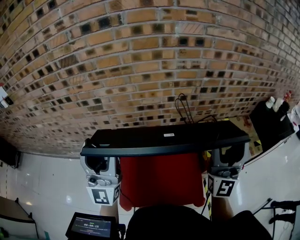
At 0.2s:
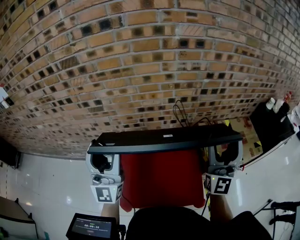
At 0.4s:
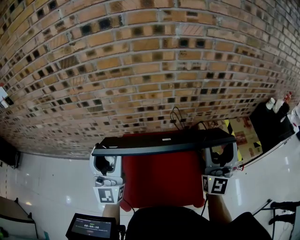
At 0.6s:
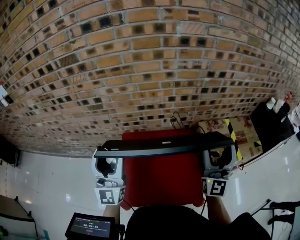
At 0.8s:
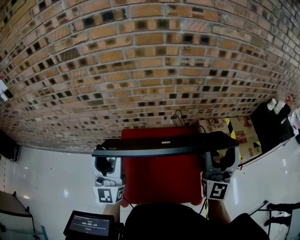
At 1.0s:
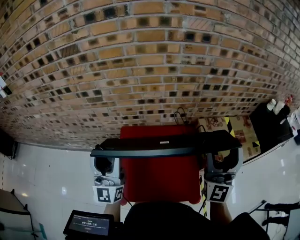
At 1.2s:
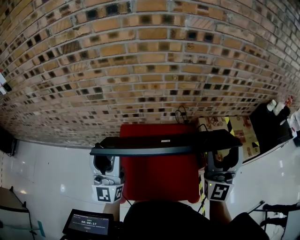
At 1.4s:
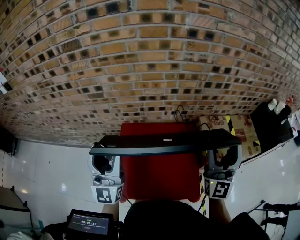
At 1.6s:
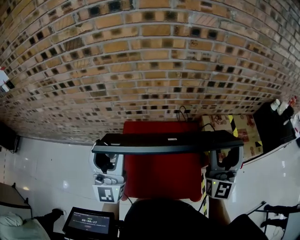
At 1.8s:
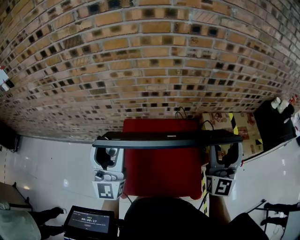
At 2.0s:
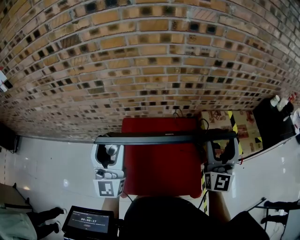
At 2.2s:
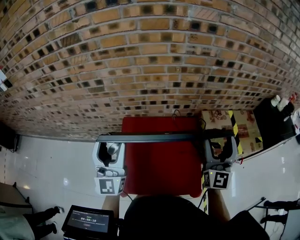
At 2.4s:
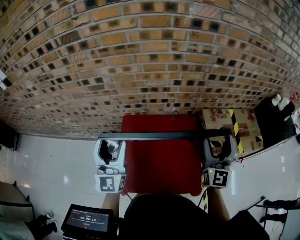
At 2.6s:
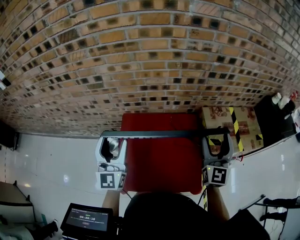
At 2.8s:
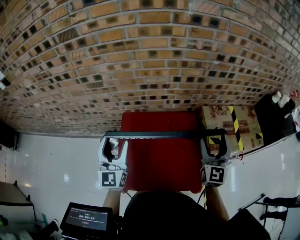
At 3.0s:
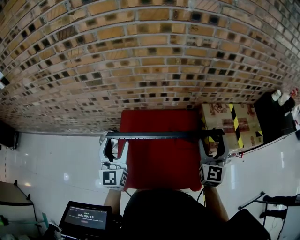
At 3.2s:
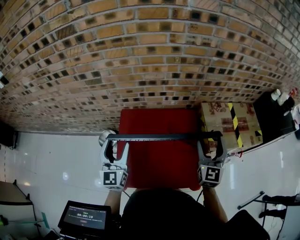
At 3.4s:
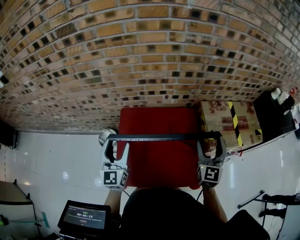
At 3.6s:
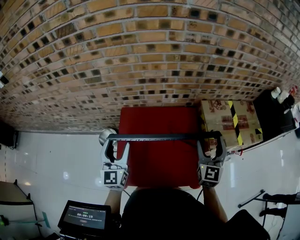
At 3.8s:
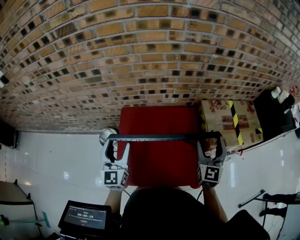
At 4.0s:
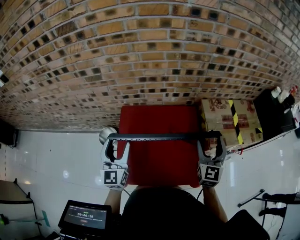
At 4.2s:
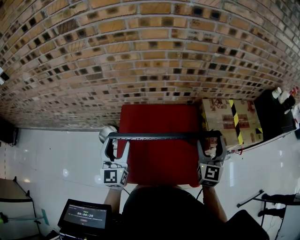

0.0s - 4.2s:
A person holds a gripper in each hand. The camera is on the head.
0.0s - 1.4s: Both grippers move downward, approximately 5 cm.
1.4s - 2.8s: Both grippers travel together downward, about 10 cm. The left gripper swivels approximately 20 degrees. Meanwhile the right gripper swivels about 20 degrees.
2.8s - 4.2s: Both grippers travel together downward, some 5 cm.

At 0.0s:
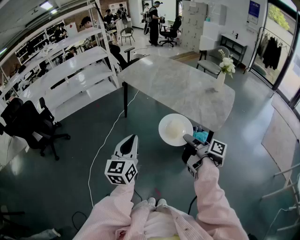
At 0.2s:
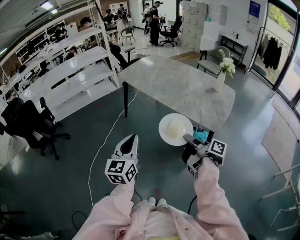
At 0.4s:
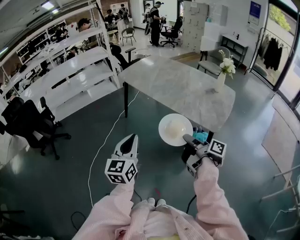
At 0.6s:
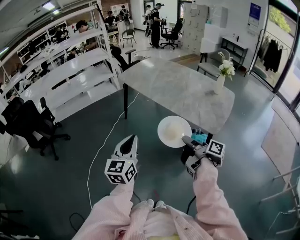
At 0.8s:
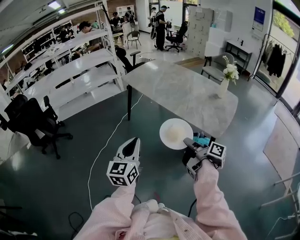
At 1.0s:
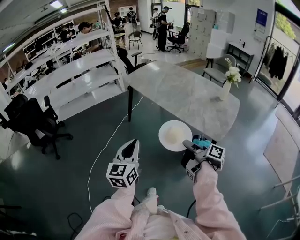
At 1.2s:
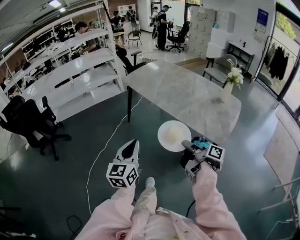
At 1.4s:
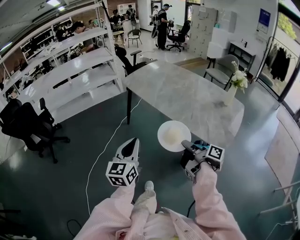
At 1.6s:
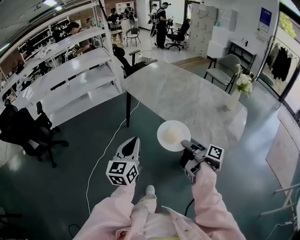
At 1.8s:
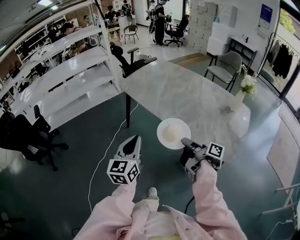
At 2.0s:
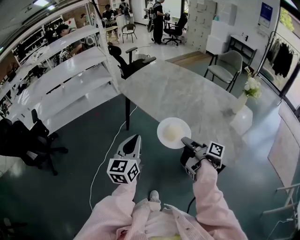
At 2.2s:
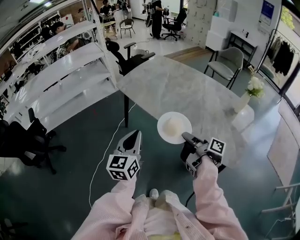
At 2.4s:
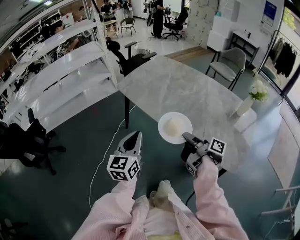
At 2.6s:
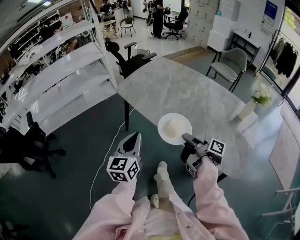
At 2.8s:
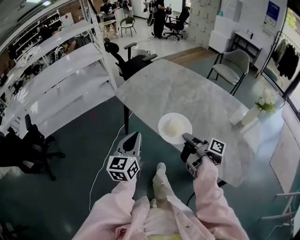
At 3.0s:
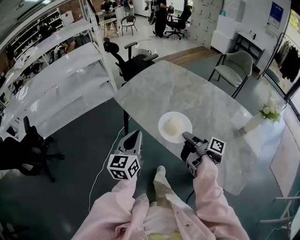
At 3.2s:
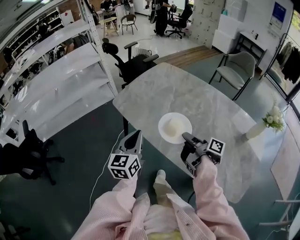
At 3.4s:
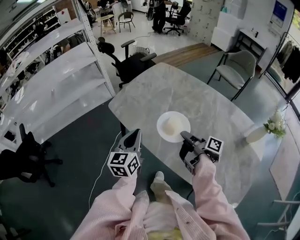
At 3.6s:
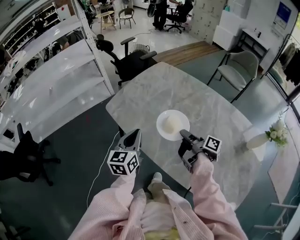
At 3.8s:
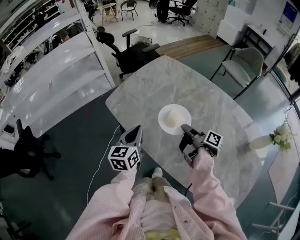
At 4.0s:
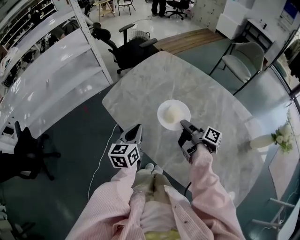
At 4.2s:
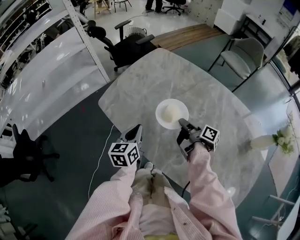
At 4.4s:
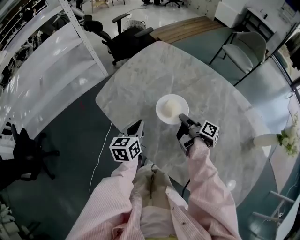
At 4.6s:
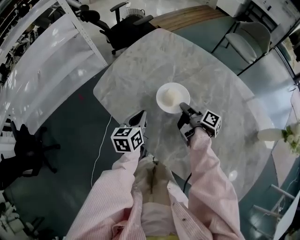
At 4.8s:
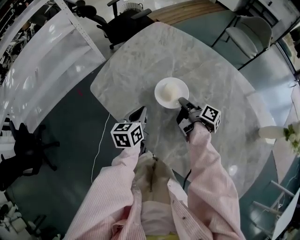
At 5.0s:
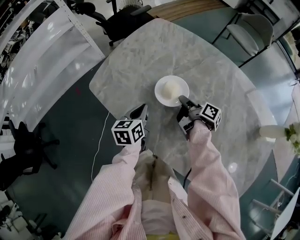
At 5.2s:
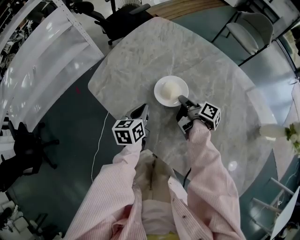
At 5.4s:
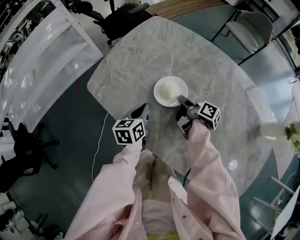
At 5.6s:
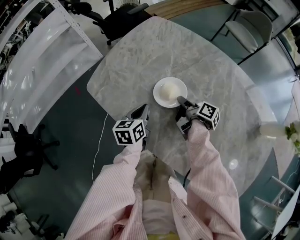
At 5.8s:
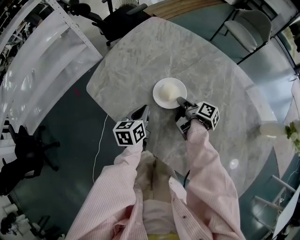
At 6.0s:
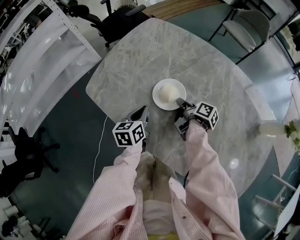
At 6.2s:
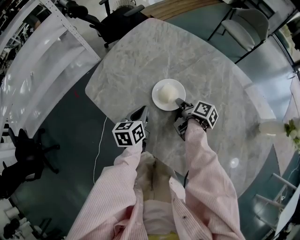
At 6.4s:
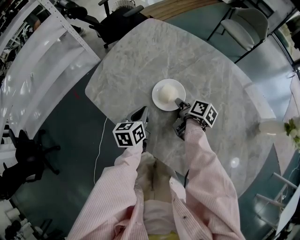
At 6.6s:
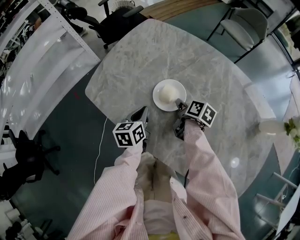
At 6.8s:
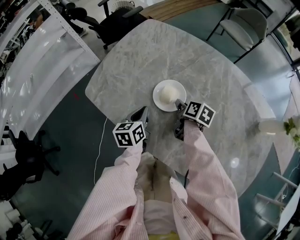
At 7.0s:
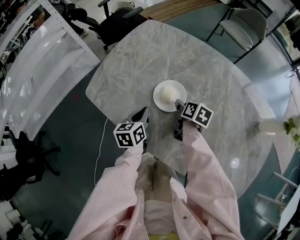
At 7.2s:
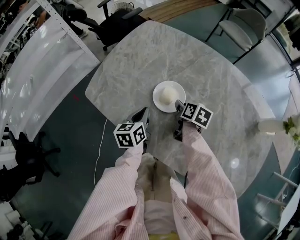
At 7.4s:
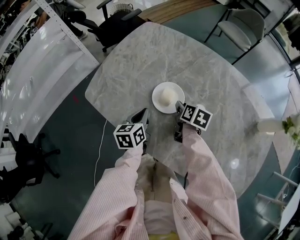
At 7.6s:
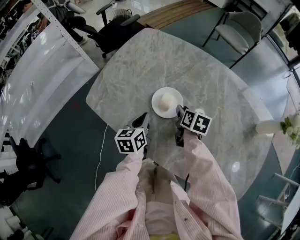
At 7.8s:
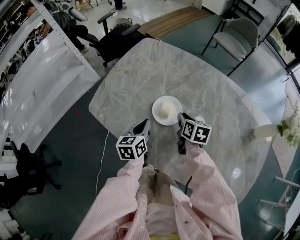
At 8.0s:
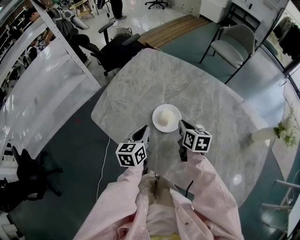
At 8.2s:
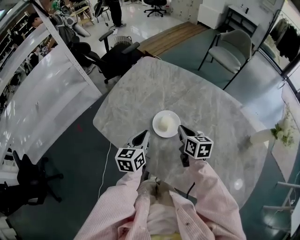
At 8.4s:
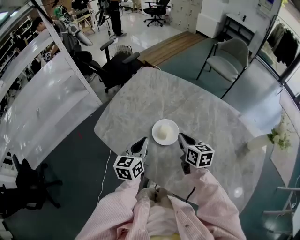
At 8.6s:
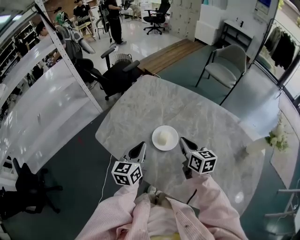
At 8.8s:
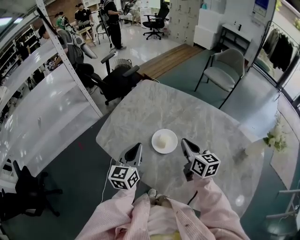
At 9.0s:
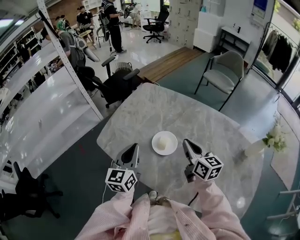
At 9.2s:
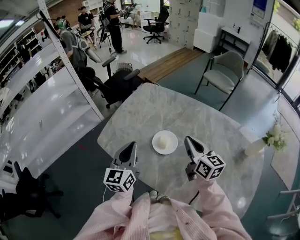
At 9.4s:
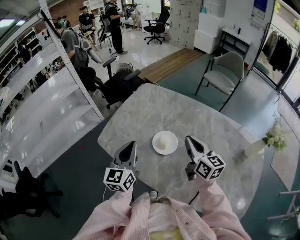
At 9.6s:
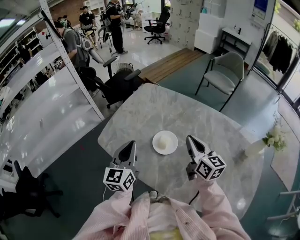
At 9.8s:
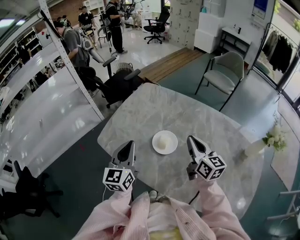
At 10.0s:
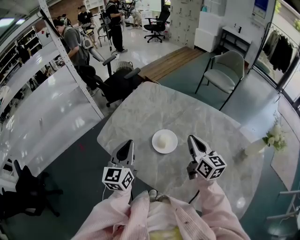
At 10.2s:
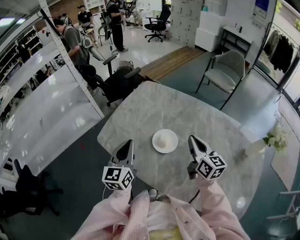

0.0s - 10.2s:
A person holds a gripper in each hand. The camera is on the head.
0.0s - 1.4s: The left gripper shifts by some 10 cm.
1.4s - 3.0s: The left gripper changes place by about 40 cm.
3.0s - 4.4s: The left gripper ends up about 30 cm from where it was, and rotates some 20 degrees.
4.4s - 5.8s: The left gripper shifts approximately 5 cm downward.
7.2s - 8.8s: The left gripper shifts roughly 15 cm upward, and turns by roughly 30 degrees.
8.8s - 10.2s: The left gripper shifts by some 5 cm.

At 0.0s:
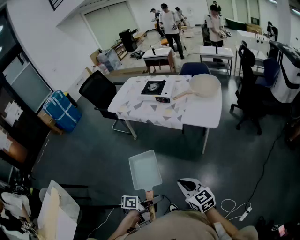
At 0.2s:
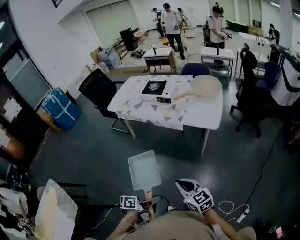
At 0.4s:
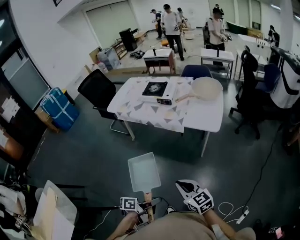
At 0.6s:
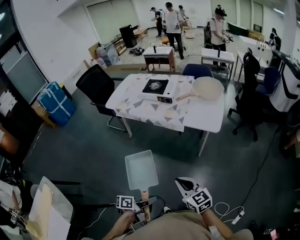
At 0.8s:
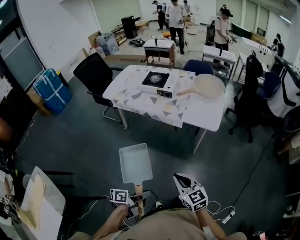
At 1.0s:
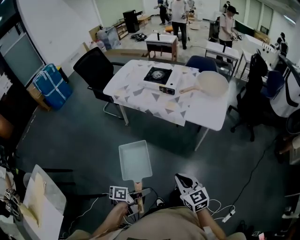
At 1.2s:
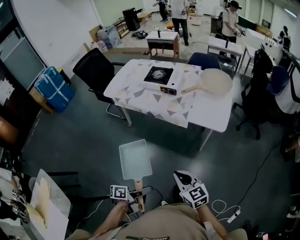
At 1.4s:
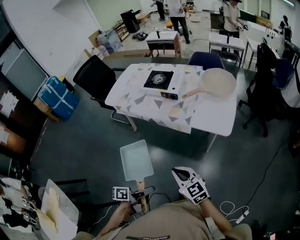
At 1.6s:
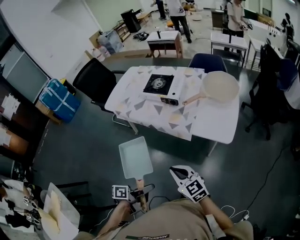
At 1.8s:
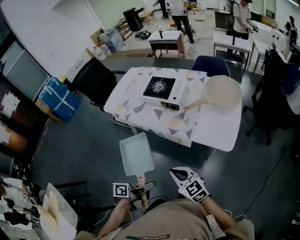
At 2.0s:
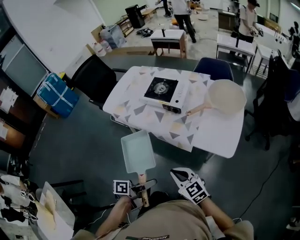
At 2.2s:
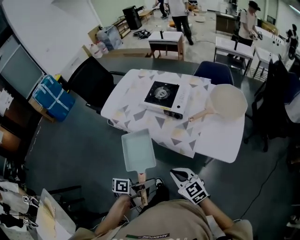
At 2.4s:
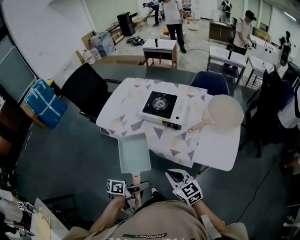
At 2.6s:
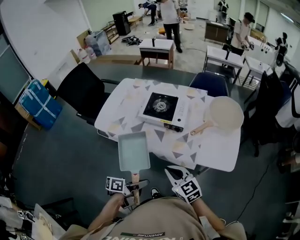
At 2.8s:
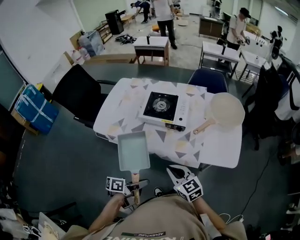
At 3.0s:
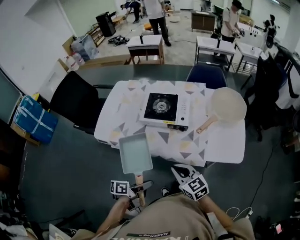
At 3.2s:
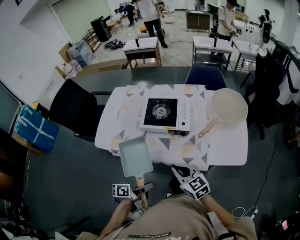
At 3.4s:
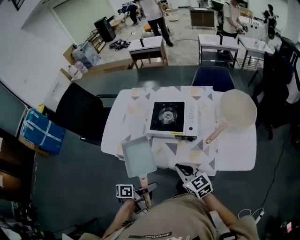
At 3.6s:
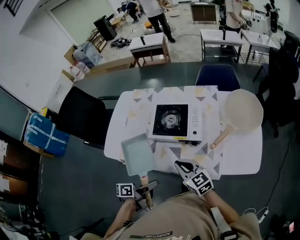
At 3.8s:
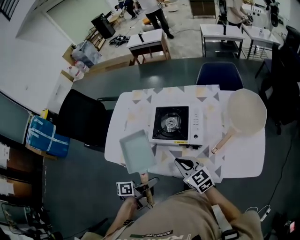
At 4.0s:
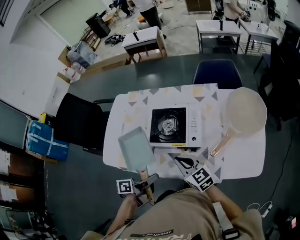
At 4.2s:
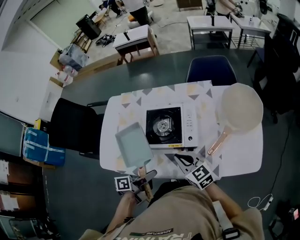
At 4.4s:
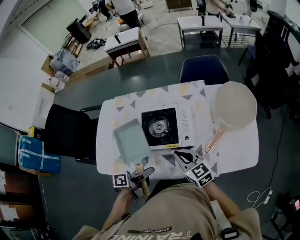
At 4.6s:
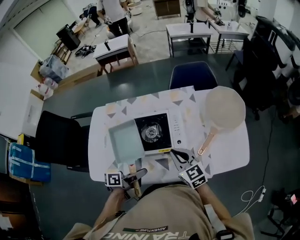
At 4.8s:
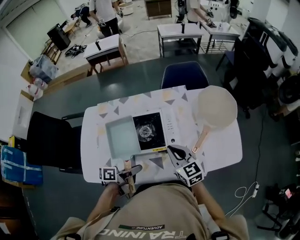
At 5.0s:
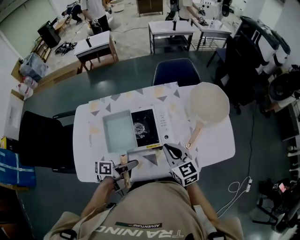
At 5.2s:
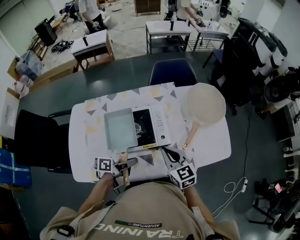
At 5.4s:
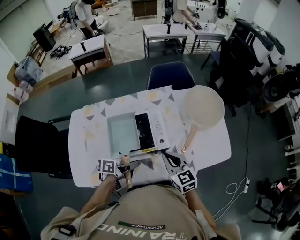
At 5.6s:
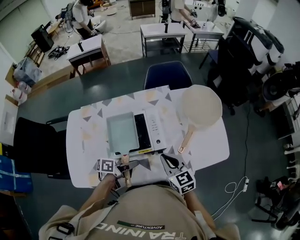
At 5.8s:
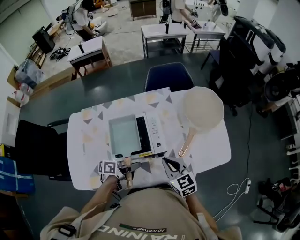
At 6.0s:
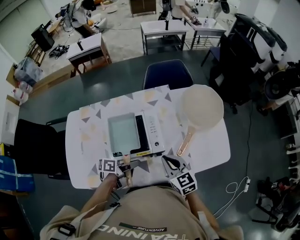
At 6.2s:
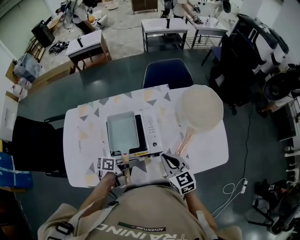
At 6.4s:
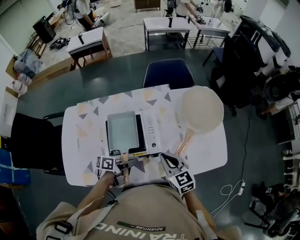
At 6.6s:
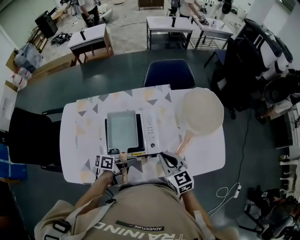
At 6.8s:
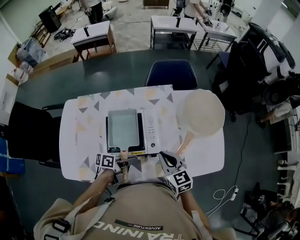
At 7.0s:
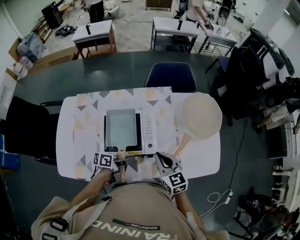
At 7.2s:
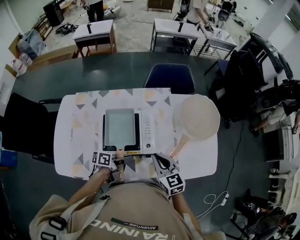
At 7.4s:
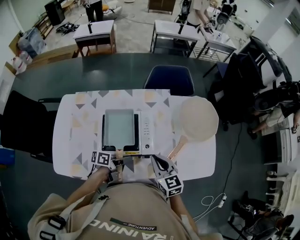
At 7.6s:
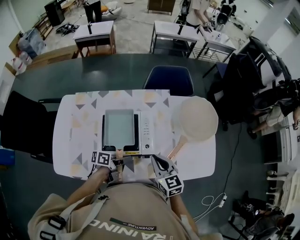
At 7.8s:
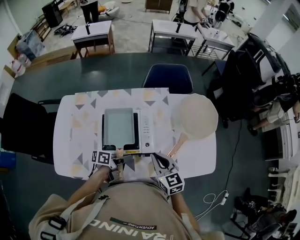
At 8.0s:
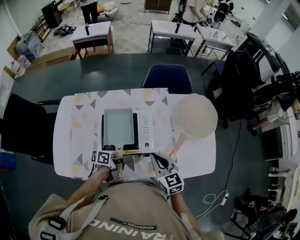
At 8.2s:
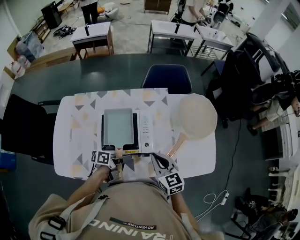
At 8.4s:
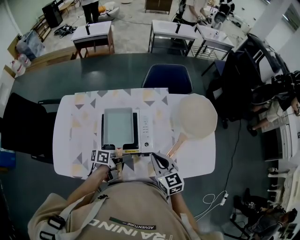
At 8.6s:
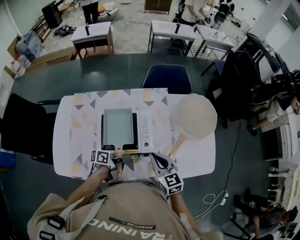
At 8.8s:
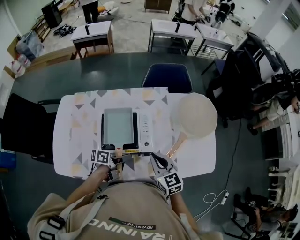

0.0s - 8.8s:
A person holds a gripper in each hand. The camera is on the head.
0.0s - 1.4s: The right gripper moves roughly 20 cm.
1.4s - 3.0s: The right gripper shifts by roughly 30 cm.
3.0s - 4.4s: The right gripper shifts by some 25 cm.
4.4s - 5.8s: The right gripper shifts by about 5 cm, and changes its angle by some 20 degrees.

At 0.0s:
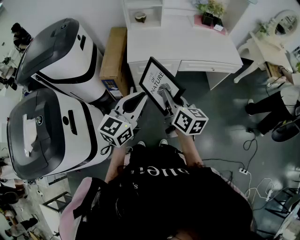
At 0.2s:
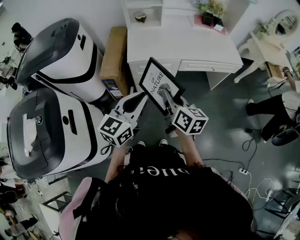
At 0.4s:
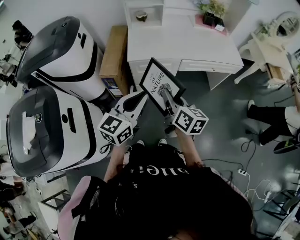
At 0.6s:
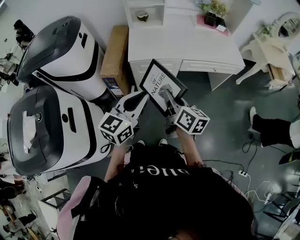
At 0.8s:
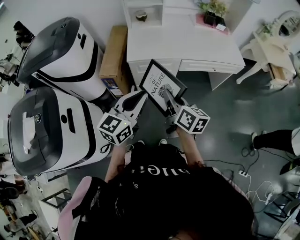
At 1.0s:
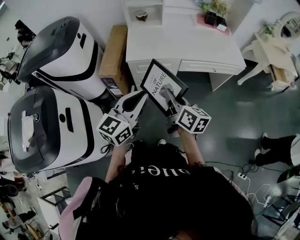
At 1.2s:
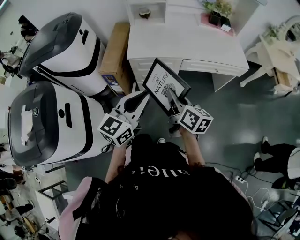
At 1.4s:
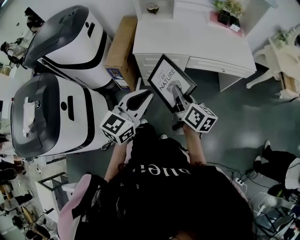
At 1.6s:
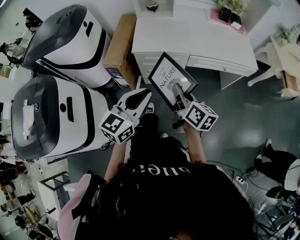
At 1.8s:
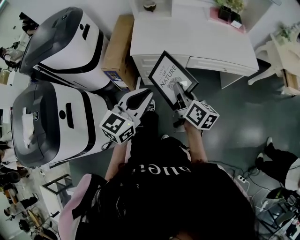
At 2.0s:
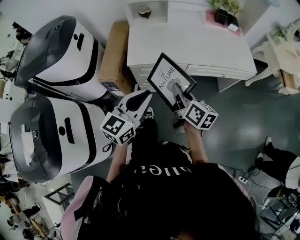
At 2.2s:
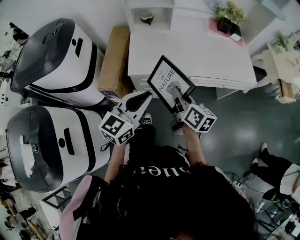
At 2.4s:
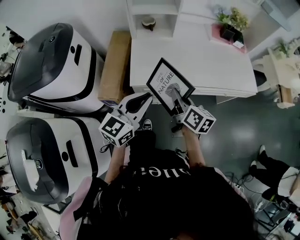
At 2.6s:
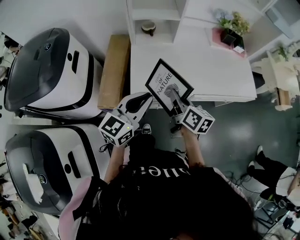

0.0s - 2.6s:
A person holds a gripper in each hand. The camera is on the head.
0.0s - 1.2s: The grippers both shift to the right by about 5 cm.
1.2s - 2.6s: The two grippers go some 30 cm forward.
